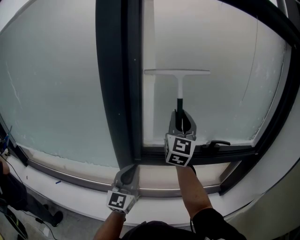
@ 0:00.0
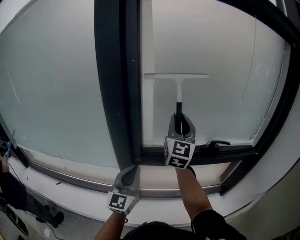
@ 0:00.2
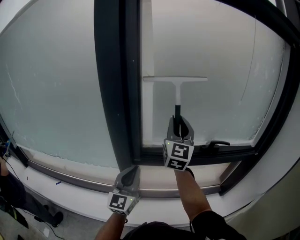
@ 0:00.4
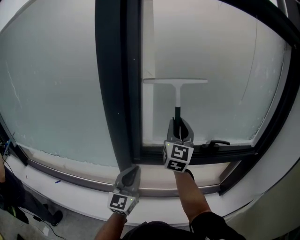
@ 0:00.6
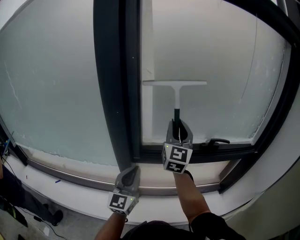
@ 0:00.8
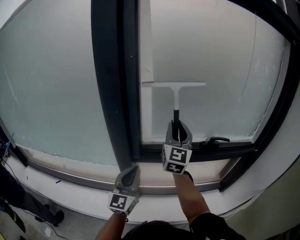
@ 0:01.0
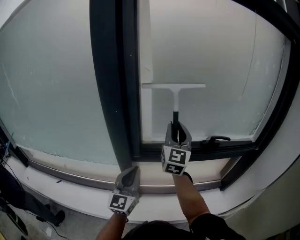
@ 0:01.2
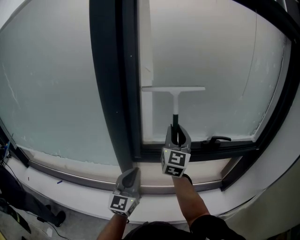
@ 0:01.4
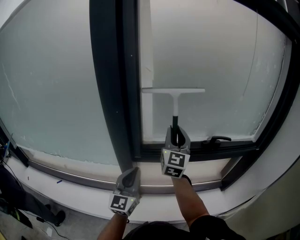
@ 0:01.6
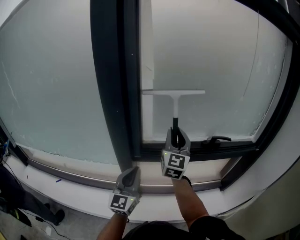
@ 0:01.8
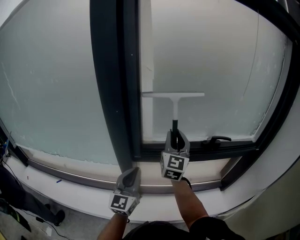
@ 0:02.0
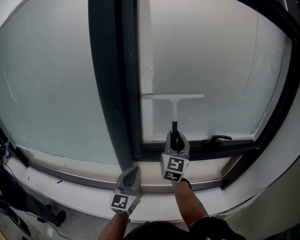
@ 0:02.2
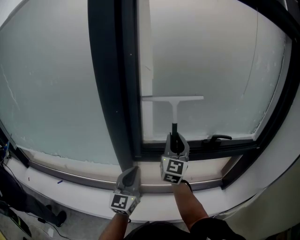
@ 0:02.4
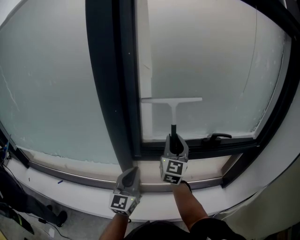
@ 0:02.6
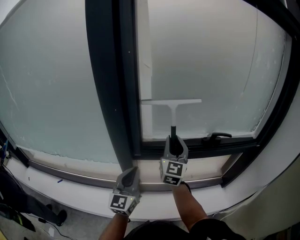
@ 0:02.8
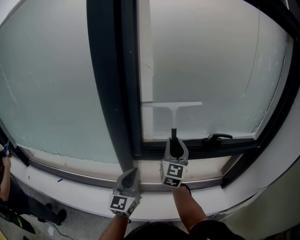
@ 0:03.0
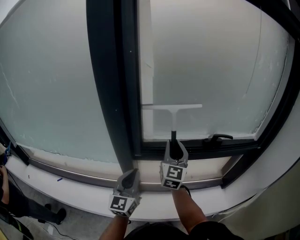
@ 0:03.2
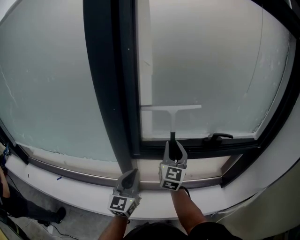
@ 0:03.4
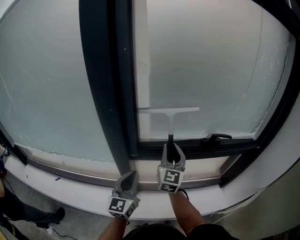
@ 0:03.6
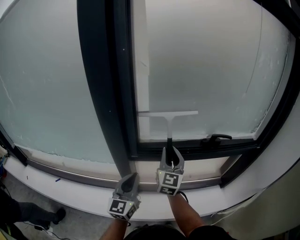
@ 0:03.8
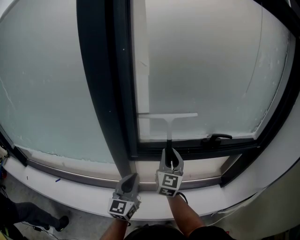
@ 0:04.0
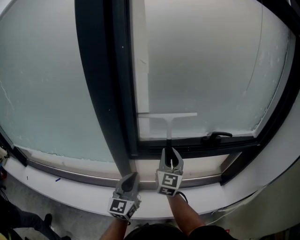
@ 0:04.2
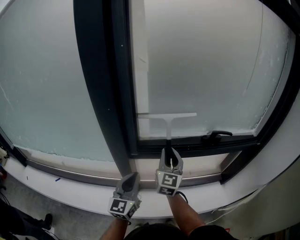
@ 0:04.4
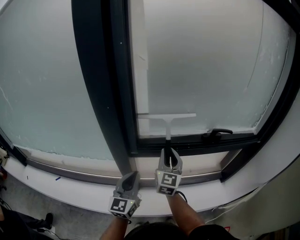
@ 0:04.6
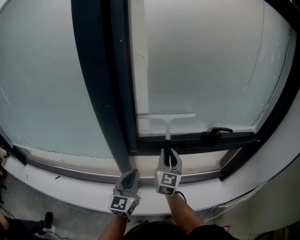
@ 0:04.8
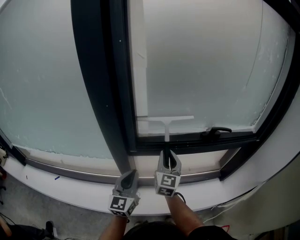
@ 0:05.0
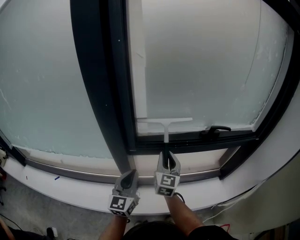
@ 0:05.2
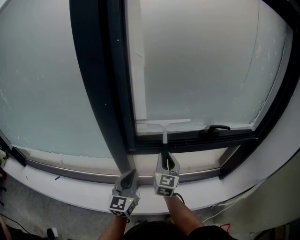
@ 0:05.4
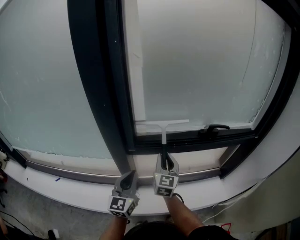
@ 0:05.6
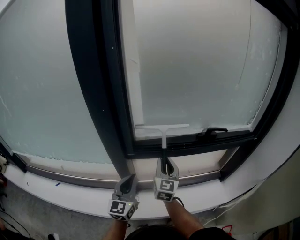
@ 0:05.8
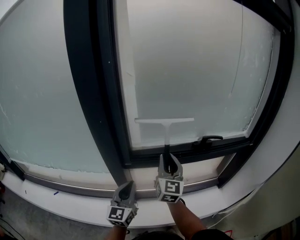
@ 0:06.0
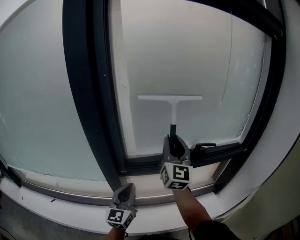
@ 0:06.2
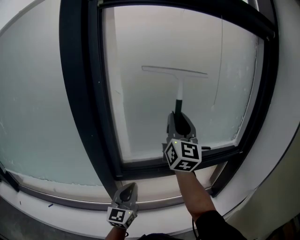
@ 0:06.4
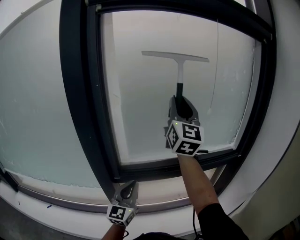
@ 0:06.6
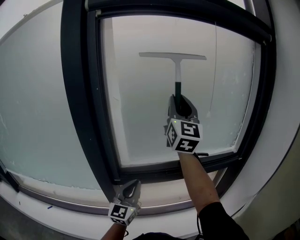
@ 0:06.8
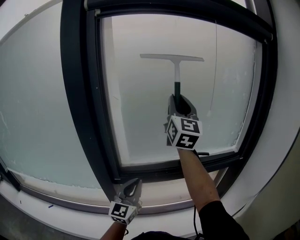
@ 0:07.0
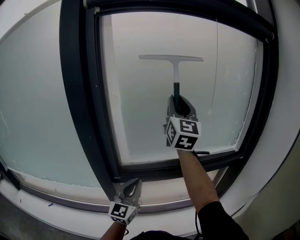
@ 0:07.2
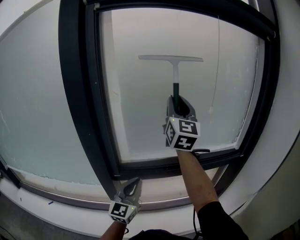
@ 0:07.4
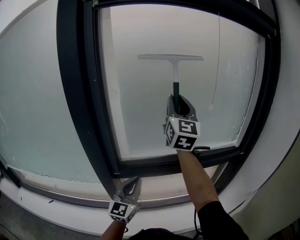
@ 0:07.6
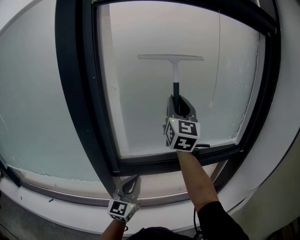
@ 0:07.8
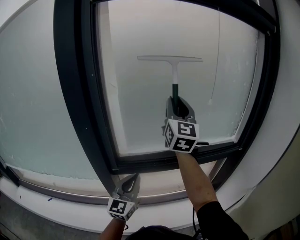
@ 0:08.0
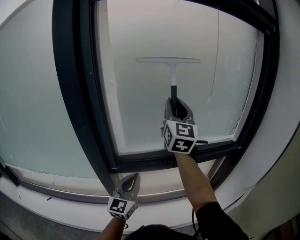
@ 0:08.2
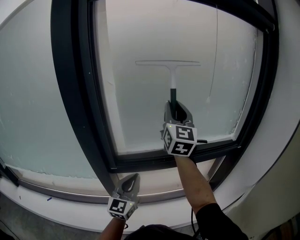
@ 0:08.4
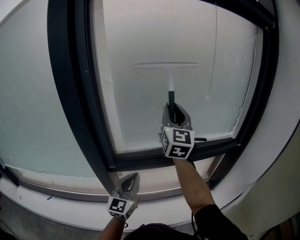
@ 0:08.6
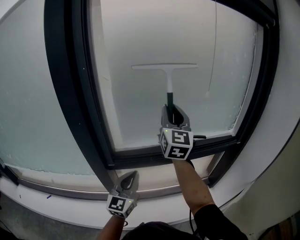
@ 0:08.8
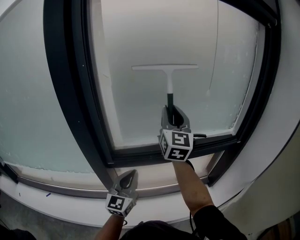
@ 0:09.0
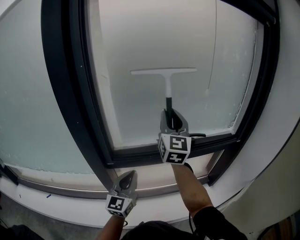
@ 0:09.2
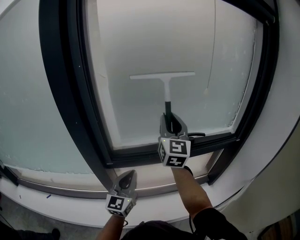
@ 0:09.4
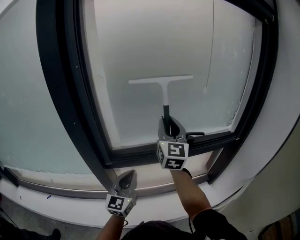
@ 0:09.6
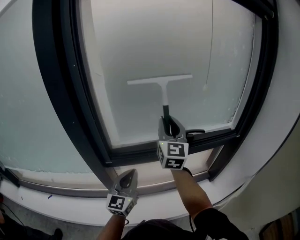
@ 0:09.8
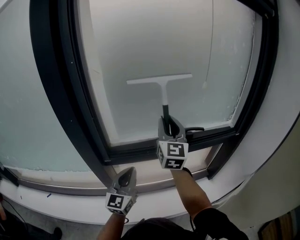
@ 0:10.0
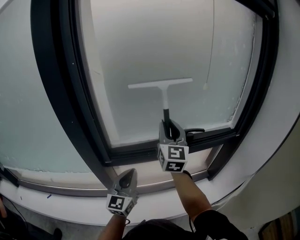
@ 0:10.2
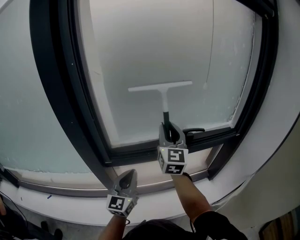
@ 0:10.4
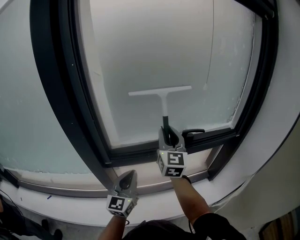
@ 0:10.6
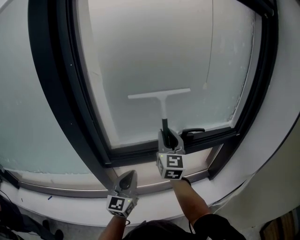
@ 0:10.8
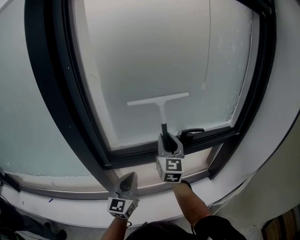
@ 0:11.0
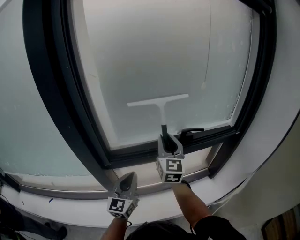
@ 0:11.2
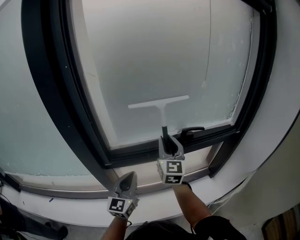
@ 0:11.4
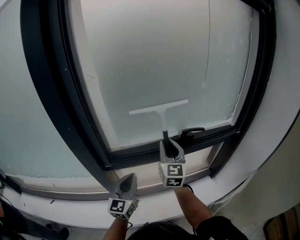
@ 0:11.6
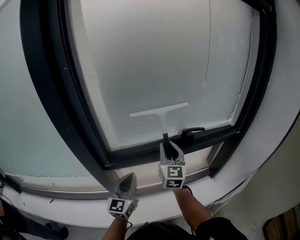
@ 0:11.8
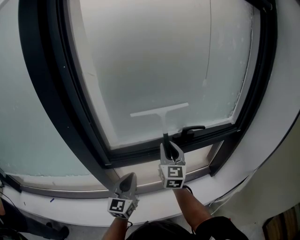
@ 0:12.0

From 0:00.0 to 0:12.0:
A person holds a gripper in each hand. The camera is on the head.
From 0:00.0 to 0:01.6: The right gripper is displaced downward by about 10 cm.
From 0:01.6 to 0:03.0: The right gripper is displaced downward by some 5 cm.
From 0:03.0 to 0:04.4: The right gripper travels downward by some 5 cm.
From 0:04.4 to 0:06.0: The right gripper moves about 5 cm downward and comes back.
From 0:06.0 to 0:07.6: The right gripper travels upward by roughly 30 cm, and turns by approximately 20 degrees. The left gripper moves to the right and upward, some 10 cm.
From 0:07.6 to 0:09.0: The right gripper is displaced downward by some 10 cm.
From 0:09.0 to 0:10.4: The right gripper travels downward by some 10 cm.
From 0:10.4 to 0:12.0: The right gripper is displaced downward by roughly 10 cm.

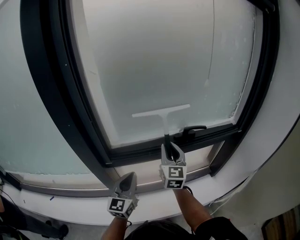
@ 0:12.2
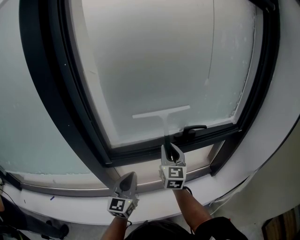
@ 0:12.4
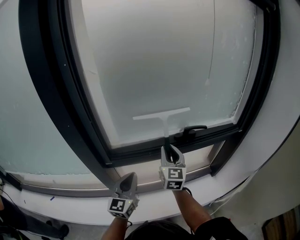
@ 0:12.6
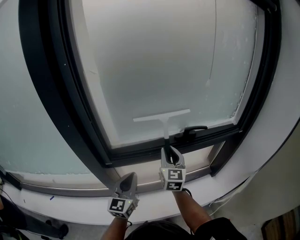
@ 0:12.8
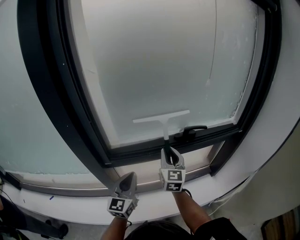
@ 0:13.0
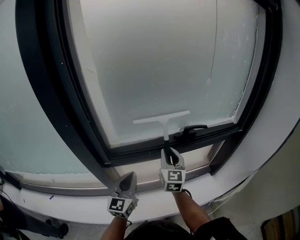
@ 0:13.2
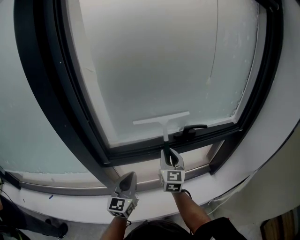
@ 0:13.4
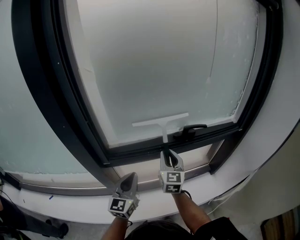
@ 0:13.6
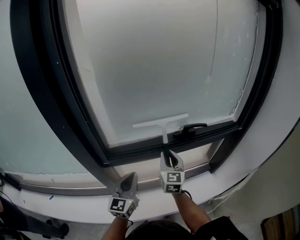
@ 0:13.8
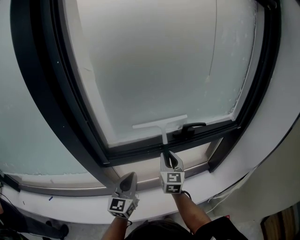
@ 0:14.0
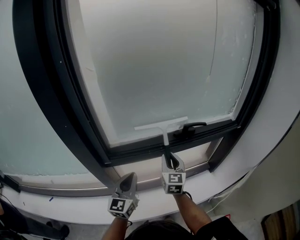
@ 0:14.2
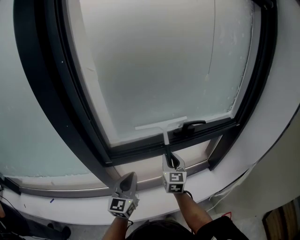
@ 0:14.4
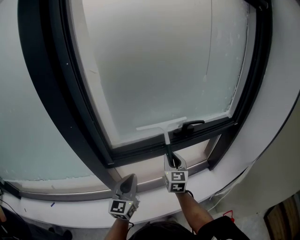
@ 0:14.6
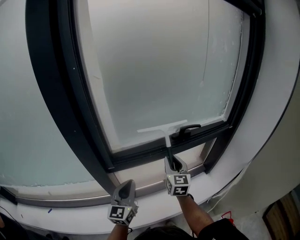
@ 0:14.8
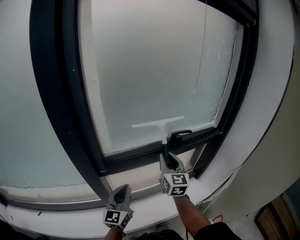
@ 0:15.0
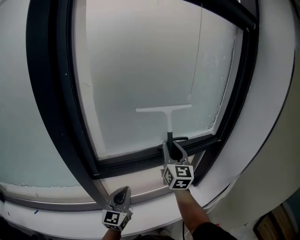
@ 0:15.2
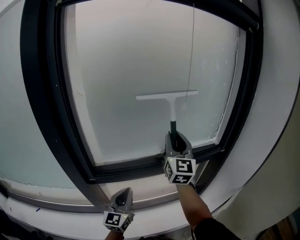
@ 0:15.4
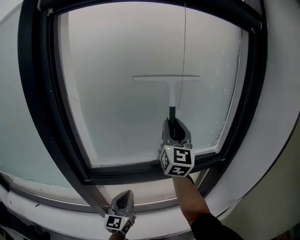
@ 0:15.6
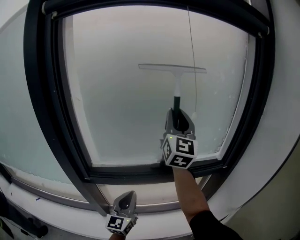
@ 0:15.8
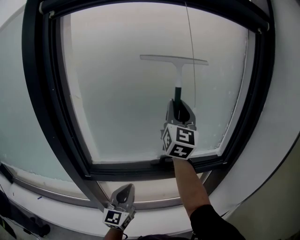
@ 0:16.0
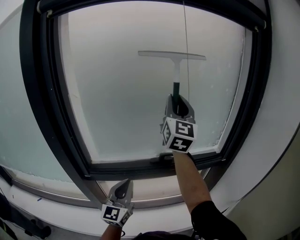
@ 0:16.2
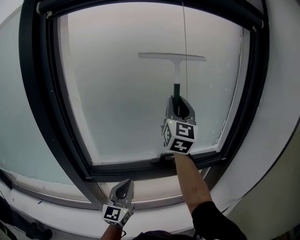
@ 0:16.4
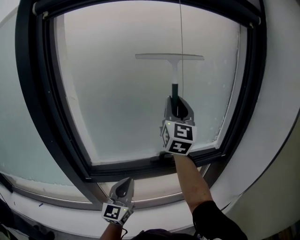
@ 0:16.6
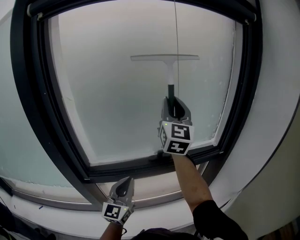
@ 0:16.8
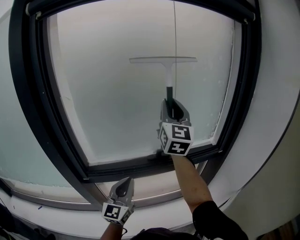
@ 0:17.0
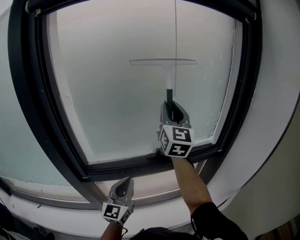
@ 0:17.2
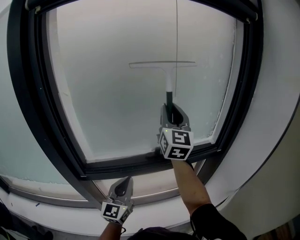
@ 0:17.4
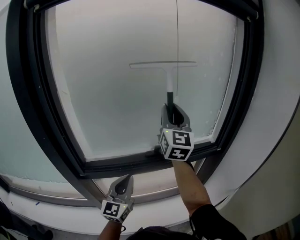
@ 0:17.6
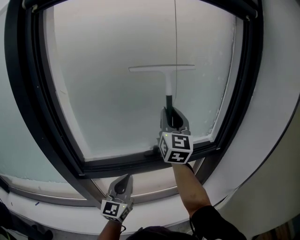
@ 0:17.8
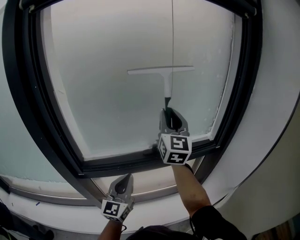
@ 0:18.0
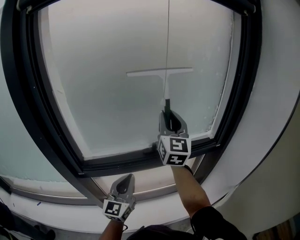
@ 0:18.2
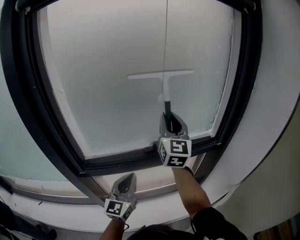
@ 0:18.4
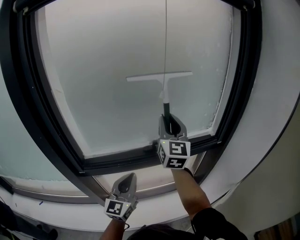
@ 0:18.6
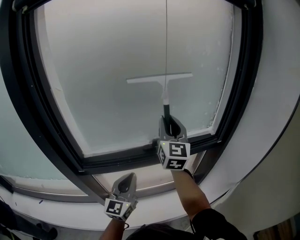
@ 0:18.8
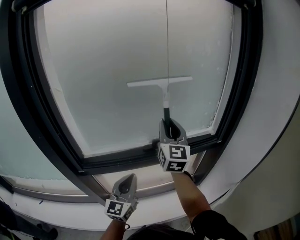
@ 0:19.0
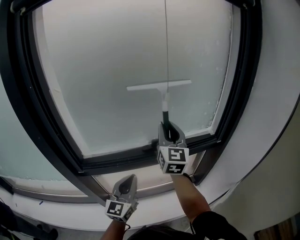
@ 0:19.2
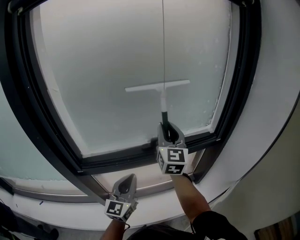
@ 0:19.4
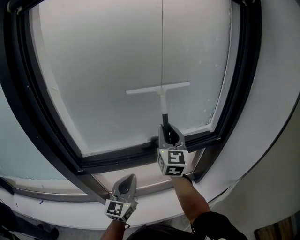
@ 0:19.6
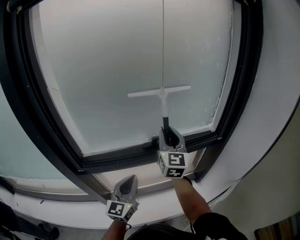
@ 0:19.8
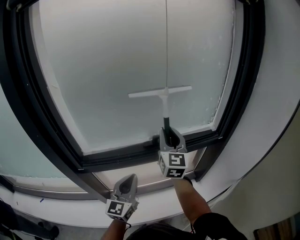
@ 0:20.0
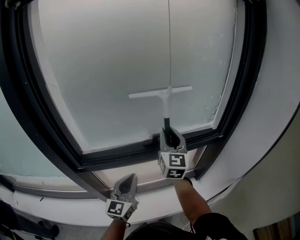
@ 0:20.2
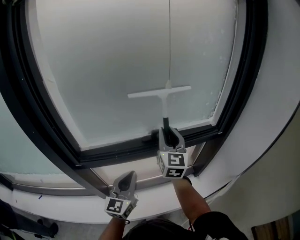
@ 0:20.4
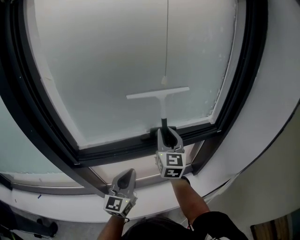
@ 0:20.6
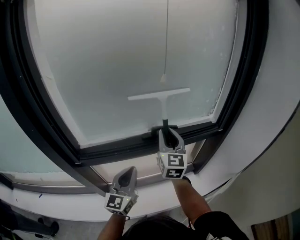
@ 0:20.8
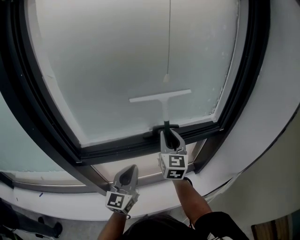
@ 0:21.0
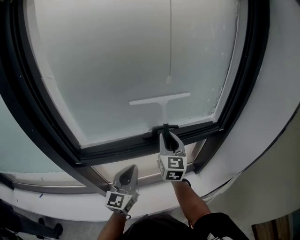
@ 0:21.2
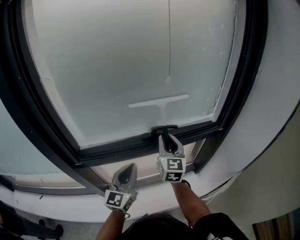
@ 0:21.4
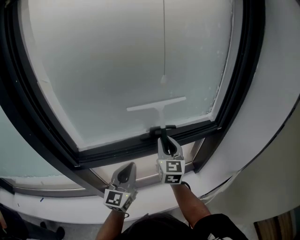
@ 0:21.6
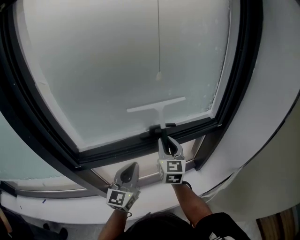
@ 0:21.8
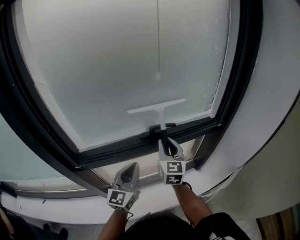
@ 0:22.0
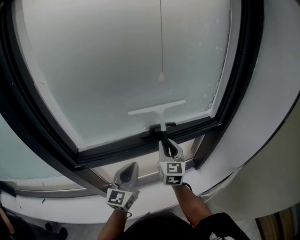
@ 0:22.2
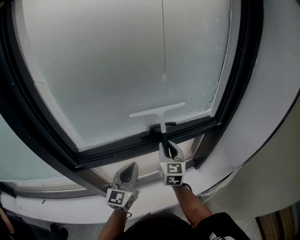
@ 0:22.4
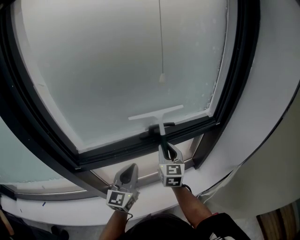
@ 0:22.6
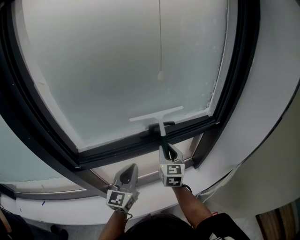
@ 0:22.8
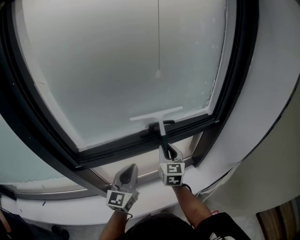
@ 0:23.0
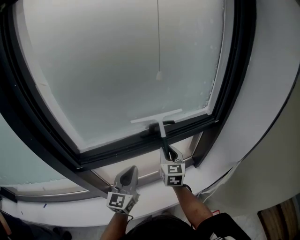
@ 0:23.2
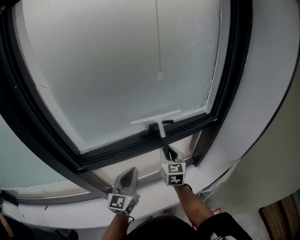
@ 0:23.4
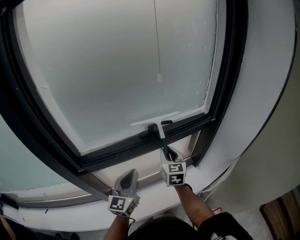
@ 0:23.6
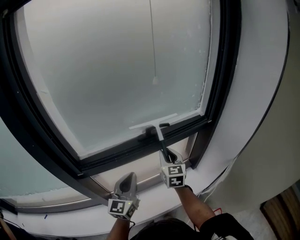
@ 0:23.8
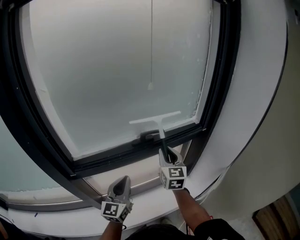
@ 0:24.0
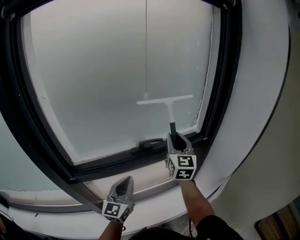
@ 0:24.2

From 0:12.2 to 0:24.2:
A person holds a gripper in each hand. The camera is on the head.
From 0:12.2 to 0:13.8: The right gripper heads downward, covering some 5 cm.
From 0:13.8 to 0:15.2: The right gripper shifts approximately 15 cm upward.
From 0:15.2 to 0:16.6: The left gripper travels upward, to the right and forward by approximately 15 cm, while the right gripper moves upward, roughly 20 cm.
From 0:16.6 to 0:18.2: The right gripper moves downward, approximately 10 cm.
From 0:18.2 to 0:19.8: The right gripper is displaced downward by roughly 10 cm.
From 0:19.8 to 0:21.2: The right gripper shifts about 10 cm downward.
From 0:21.2 to 0:22.6: The right gripper travels downward by some 5 cm.
From 0:22.6 to 0:24.2: The right gripper travels upward and to the right by approximately 15 cm.
